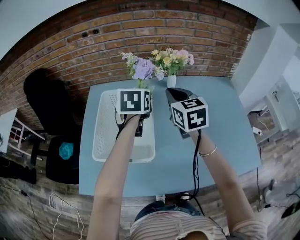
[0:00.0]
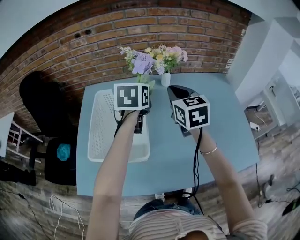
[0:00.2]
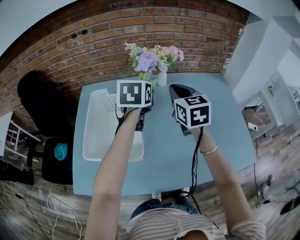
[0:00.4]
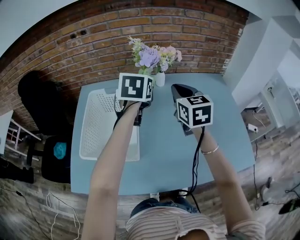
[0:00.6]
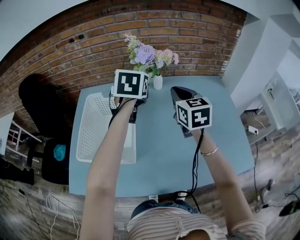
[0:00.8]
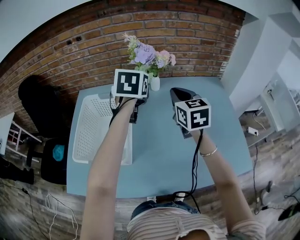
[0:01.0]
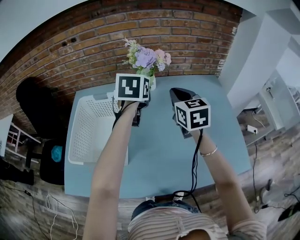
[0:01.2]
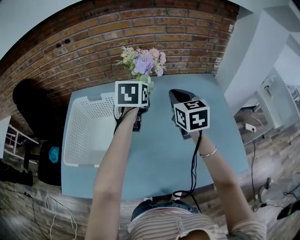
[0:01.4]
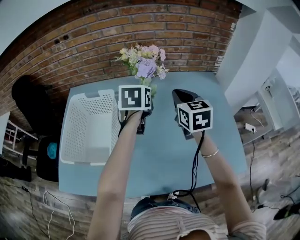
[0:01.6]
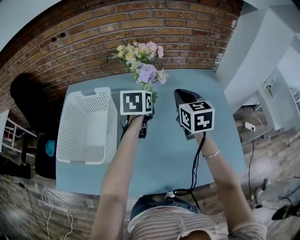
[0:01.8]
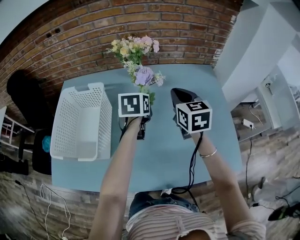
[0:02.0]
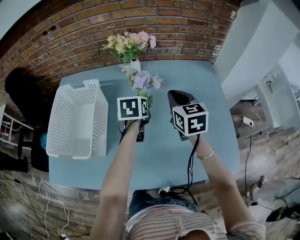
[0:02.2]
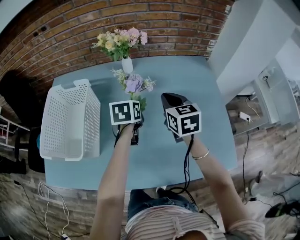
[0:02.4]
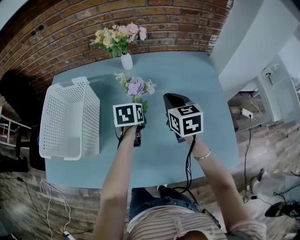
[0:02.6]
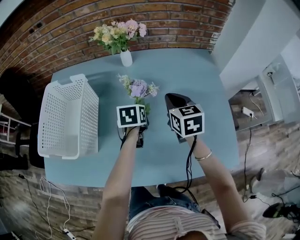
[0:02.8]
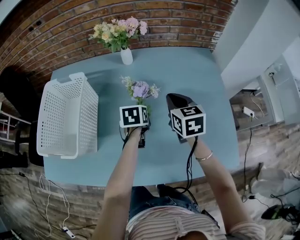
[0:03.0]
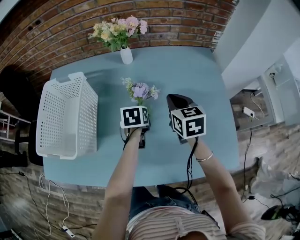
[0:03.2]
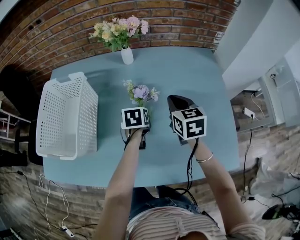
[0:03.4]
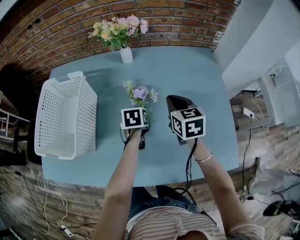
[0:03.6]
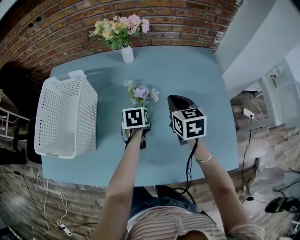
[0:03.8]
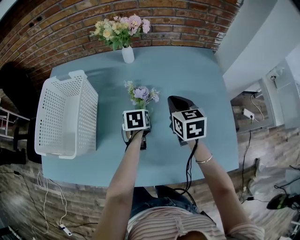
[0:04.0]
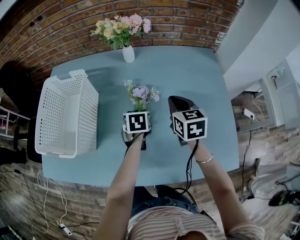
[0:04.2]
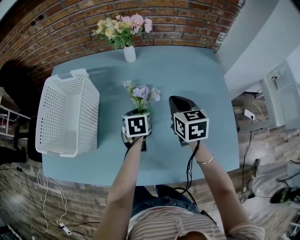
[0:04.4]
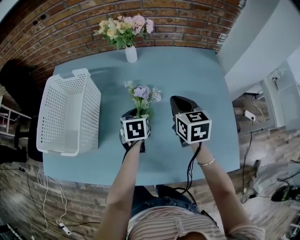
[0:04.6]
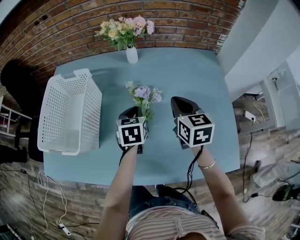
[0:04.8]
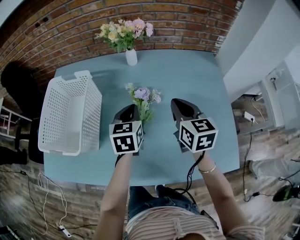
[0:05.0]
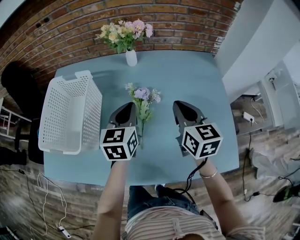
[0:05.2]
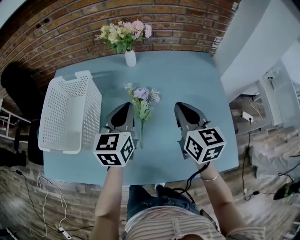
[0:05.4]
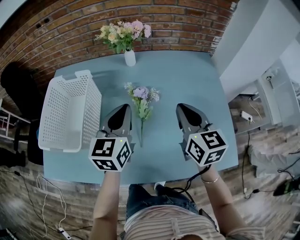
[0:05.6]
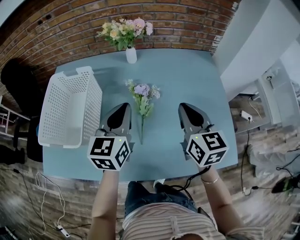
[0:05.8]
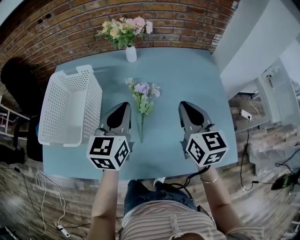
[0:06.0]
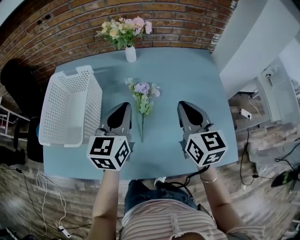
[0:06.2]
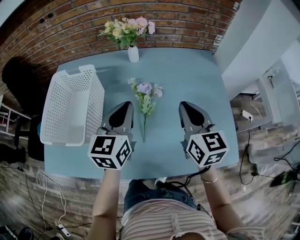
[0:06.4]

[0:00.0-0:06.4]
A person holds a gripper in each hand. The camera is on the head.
0:00.0 to 0:01.6: Both grippers move to the right, roughly 20 cm.
0:01.6 to 0:03.2: The left gripper moves downward, some 25 cm, and rotates roughly 20 degrees. The right gripper heads downward and to the right, covering some 15 cm.
0:03.2 to 0:04.8: The left gripper travels upward by about 5 cm, and turns by roughly 20 degrees.
0:04.8 to 0:06.4: The right gripper goes some 10 cm backward and upward. Meanwhile the left gripper goes approximately 15 cm upward and backward, and swivels some 30 degrees.

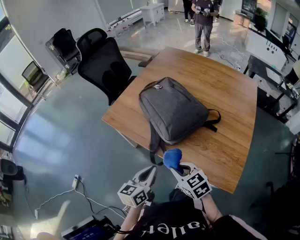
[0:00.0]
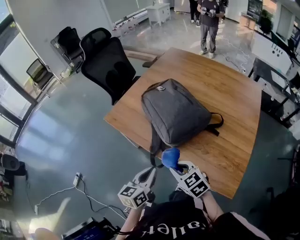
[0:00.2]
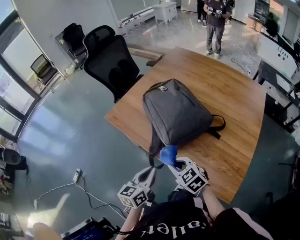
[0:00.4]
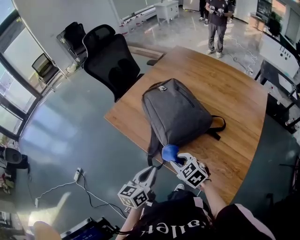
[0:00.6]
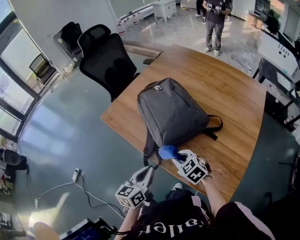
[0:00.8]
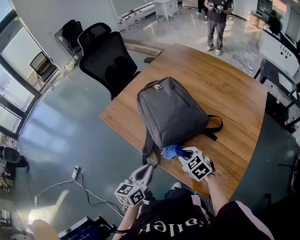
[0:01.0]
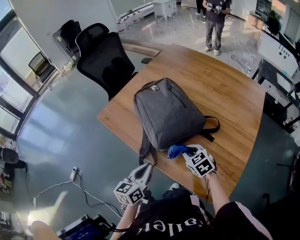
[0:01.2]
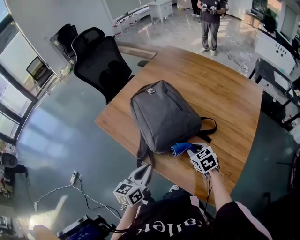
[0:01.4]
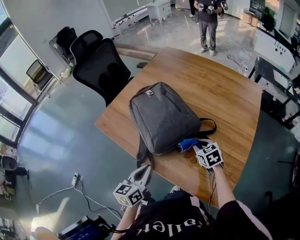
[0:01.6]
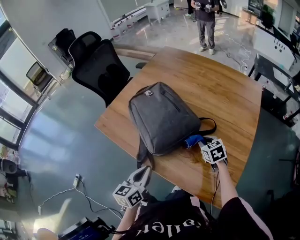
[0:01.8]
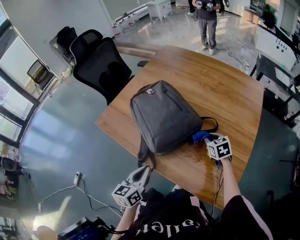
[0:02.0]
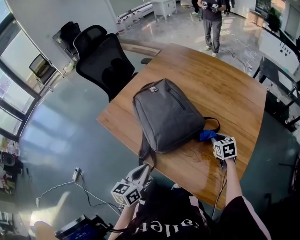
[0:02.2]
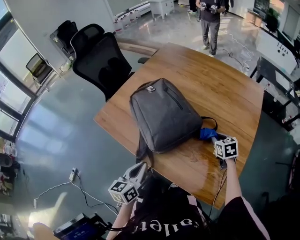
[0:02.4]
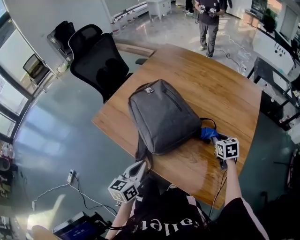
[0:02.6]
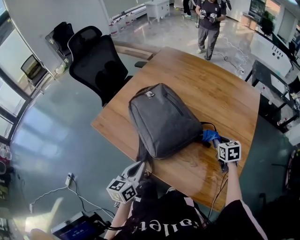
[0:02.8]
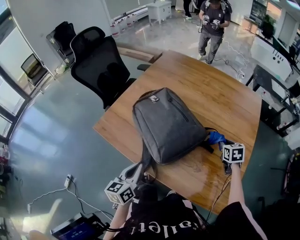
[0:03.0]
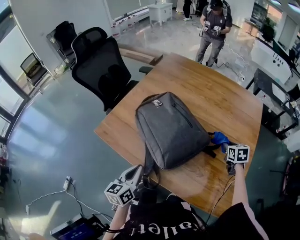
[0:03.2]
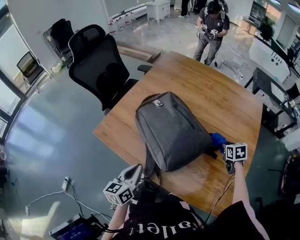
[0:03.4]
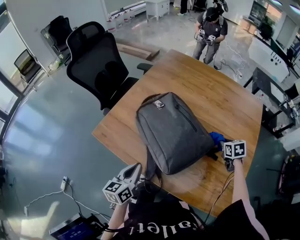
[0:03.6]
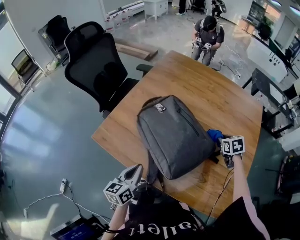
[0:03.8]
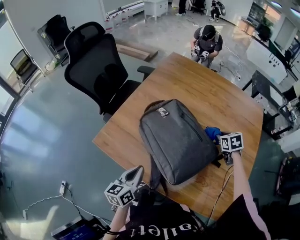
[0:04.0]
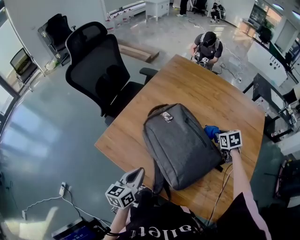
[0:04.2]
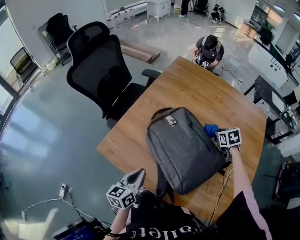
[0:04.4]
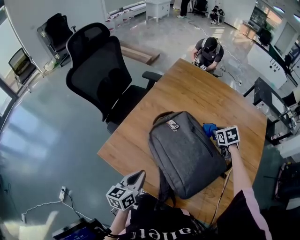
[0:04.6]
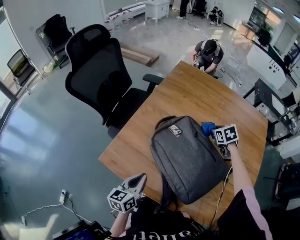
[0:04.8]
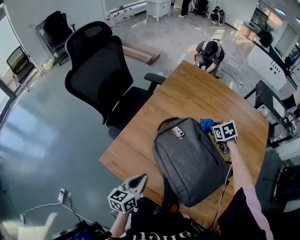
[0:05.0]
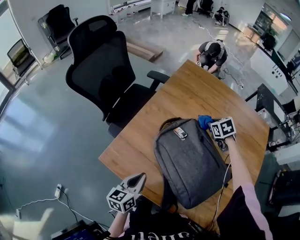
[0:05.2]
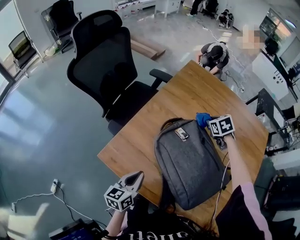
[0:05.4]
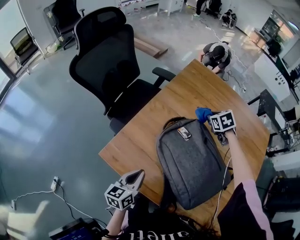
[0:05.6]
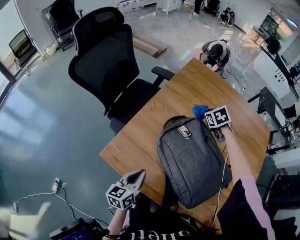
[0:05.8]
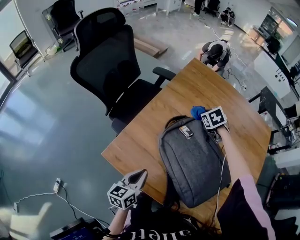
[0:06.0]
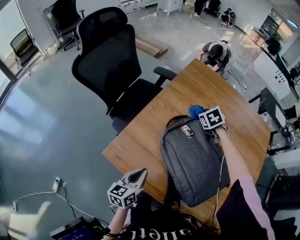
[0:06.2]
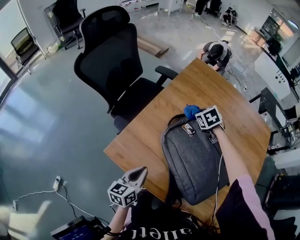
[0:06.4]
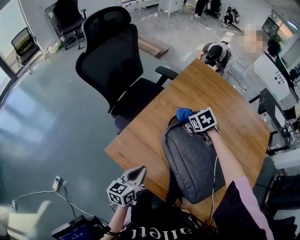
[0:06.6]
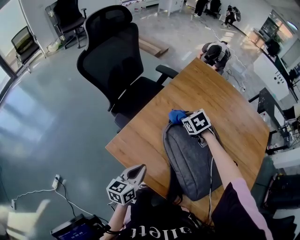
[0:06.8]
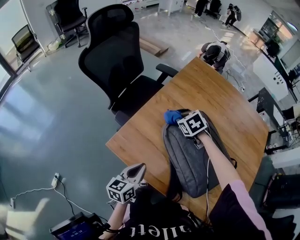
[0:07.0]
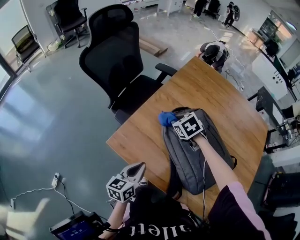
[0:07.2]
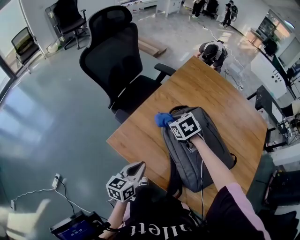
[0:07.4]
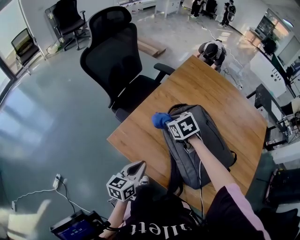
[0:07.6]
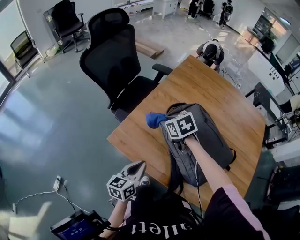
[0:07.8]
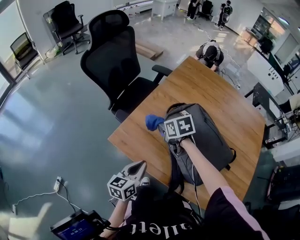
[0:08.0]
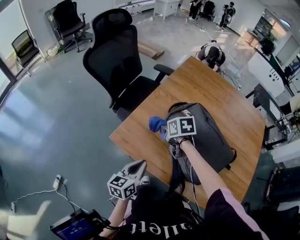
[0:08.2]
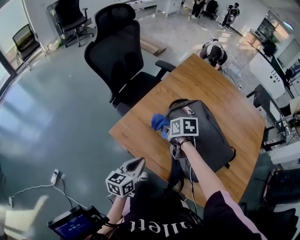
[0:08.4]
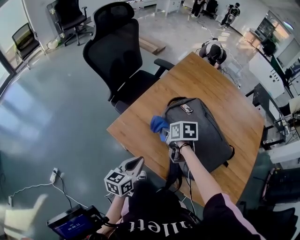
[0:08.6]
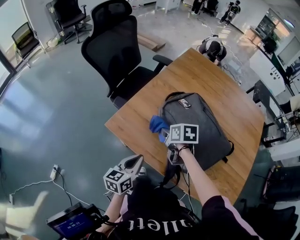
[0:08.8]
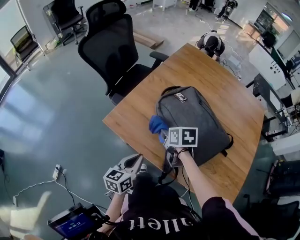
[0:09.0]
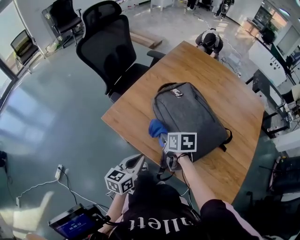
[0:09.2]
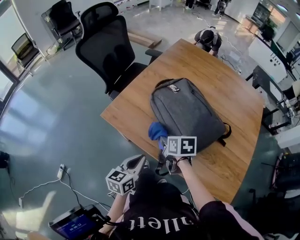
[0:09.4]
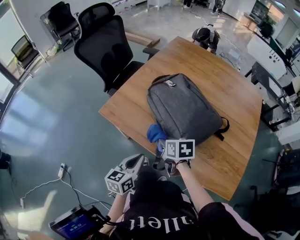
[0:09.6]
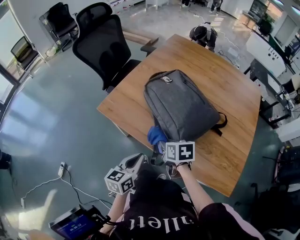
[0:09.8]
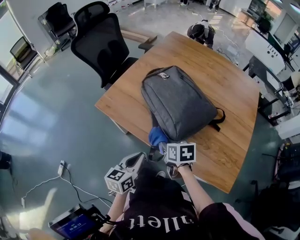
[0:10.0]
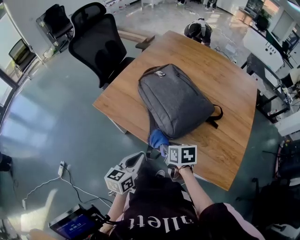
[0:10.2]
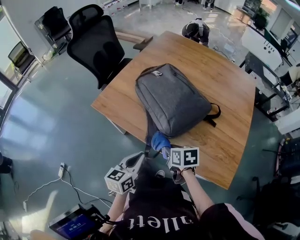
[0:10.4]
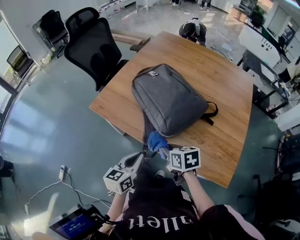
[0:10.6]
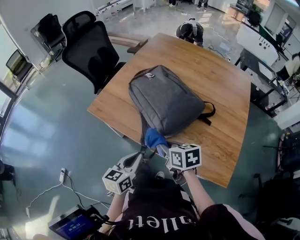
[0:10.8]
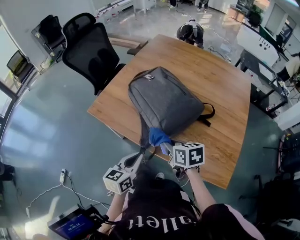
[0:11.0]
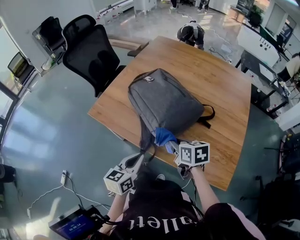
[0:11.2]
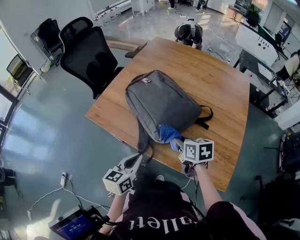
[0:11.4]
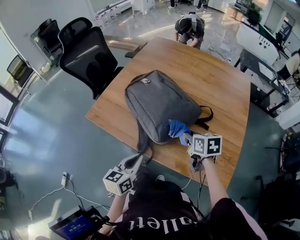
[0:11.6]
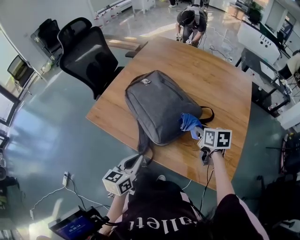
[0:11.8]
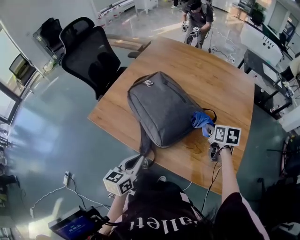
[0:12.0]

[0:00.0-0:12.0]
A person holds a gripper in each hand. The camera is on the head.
0:00.0 to 0:01.6: The right gripper shifts some 25 cm to the right and forward. Meanwhile the left gripper goes about 10 cm to the right and forward.
0:01.6 to 0:03.0: The right gripper is displaced to the right and forward by about 15 cm, and swivels roughly 30 degrees. Meanwhile the left gripper shifts approximately 10 cm to the left.
0:03.0 to 0:04.4: The right gripper heads forward and to the left, covering about 25 cm. The left gripper shifts approximately 15 cm to the left and forward.
0:04.4 to 0:06.0: The right gripper goes roughly 25 cm to the left and forward, while the left gripper travels to the left by approximately 5 cm.
0:06.0 to 0:07.6: The left gripper goes roughly 5 cm backward, while the right gripper moves backward and to the left, approximately 25 cm.
0:07.6 to 0:09.0: The left gripper goes approximately 5 cm backward. Meanwhile the right gripper heads backward, covering roughly 15 cm, and turns by roughly 40 degrees.
0:09.0 to 0:10.4: The left gripper is displaced backward and to the right by some 15 cm. Meanwhile the right gripper shifts about 25 cm backward and to the right.
0:10.4 to 0:12.0: The right gripper moves to the right and forward, about 30 cm. Meanwhile the left gripper moves to the right, roughly 5 cm.

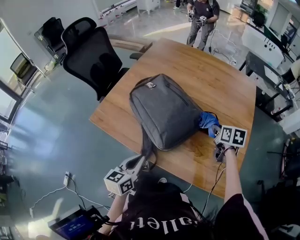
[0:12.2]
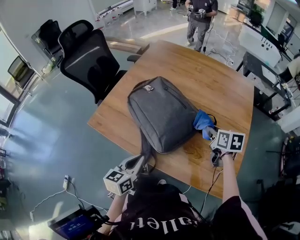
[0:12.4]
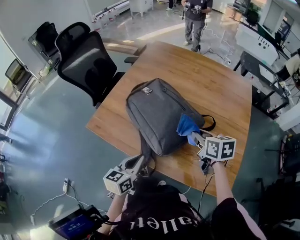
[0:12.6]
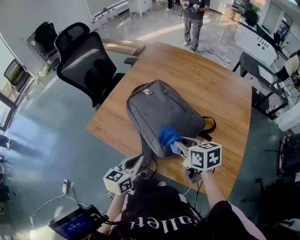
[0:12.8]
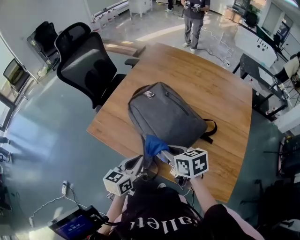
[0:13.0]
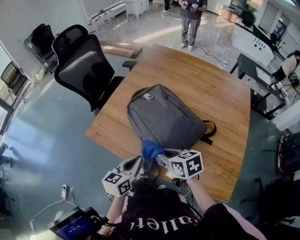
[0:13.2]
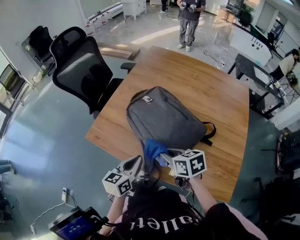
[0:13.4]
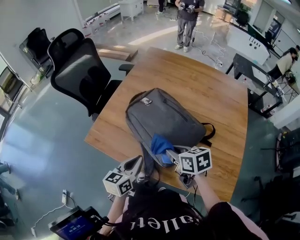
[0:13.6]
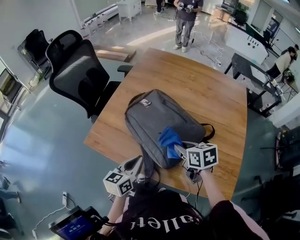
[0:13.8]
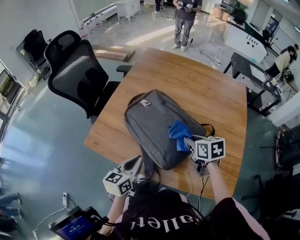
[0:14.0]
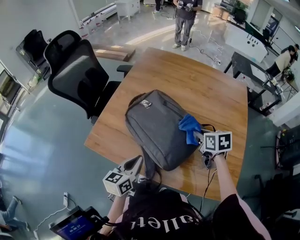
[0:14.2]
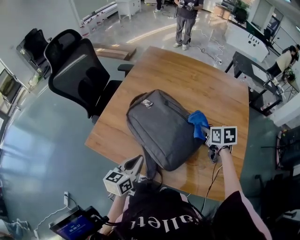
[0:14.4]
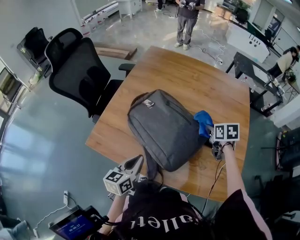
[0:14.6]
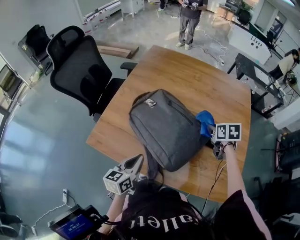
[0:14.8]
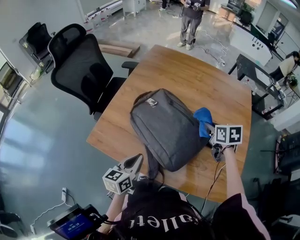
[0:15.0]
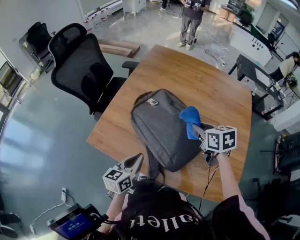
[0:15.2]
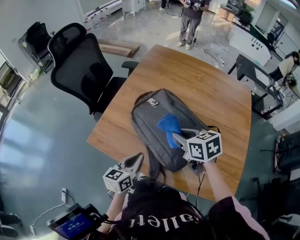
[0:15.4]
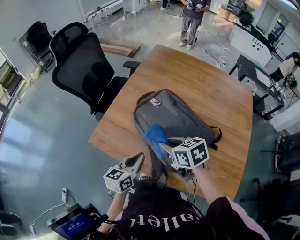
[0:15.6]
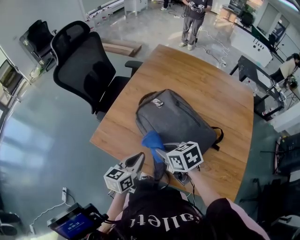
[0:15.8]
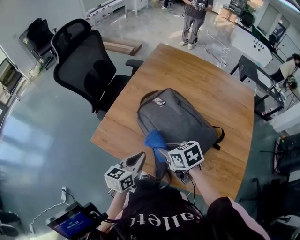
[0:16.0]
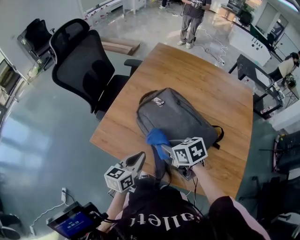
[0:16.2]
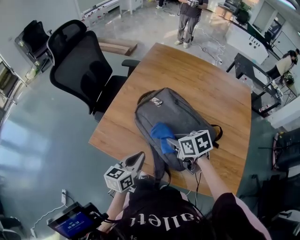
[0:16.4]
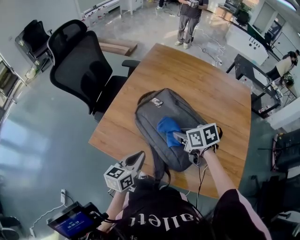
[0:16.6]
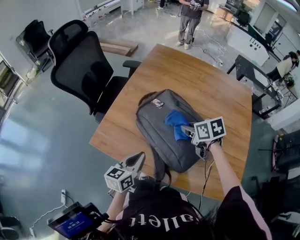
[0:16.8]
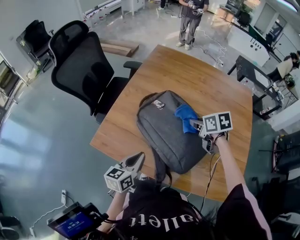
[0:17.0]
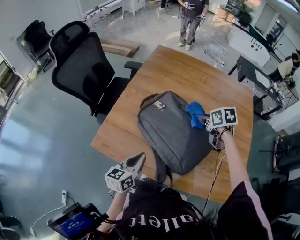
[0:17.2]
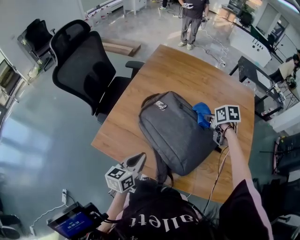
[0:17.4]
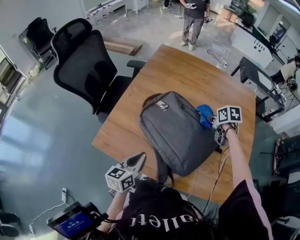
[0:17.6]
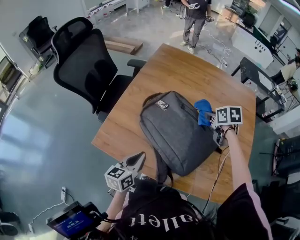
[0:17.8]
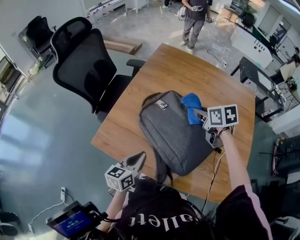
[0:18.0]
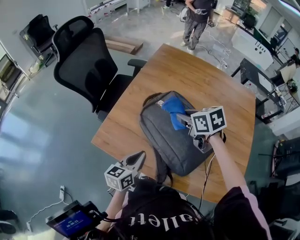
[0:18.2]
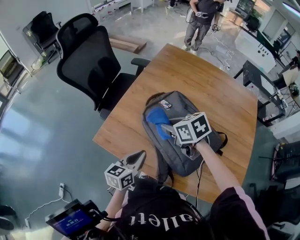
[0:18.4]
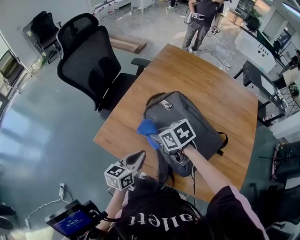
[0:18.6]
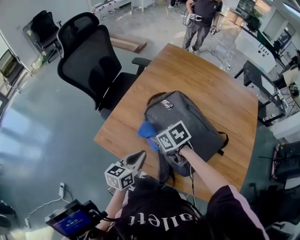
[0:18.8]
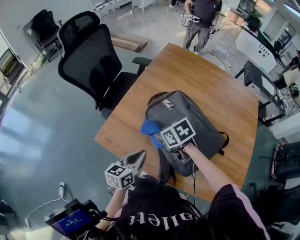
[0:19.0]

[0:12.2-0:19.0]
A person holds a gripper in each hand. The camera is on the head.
0:12.2 to 0:13.6: The left gripper heads forward and to the left, covering about 15 cm, while the right gripper shifts about 30 cm to the left, and swivels roughly 20 degrees.
0:13.6 to 0:15.0: The right gripper is displaced forward and to the right by about 20 cm, and turns by roughly 20 degrees.
0:15.0 to 0:16.2: The right gripper travels to the left and backward by about 25 cm, and rotates roughly 30 degrees.
0:16.2 to 0:17.6: The right gripper travels to the right and forward by some 30 cm, and rotates some 30 degrees.
0:17.6 to 0:19.0: The right gripper goes roughly 30 cm to the left, and turns by approximately 40 degrees.
